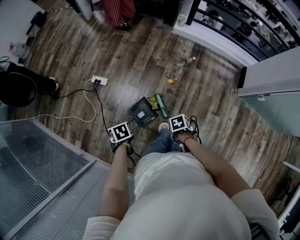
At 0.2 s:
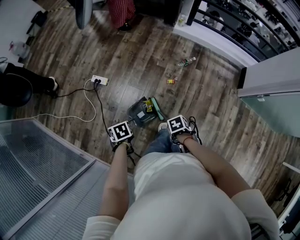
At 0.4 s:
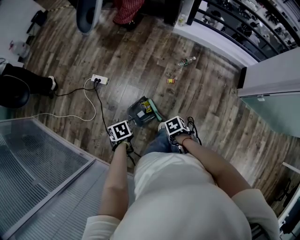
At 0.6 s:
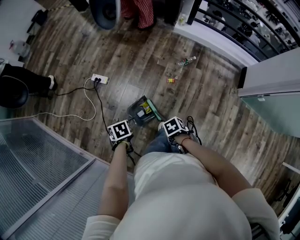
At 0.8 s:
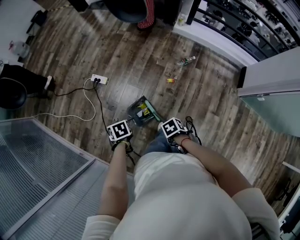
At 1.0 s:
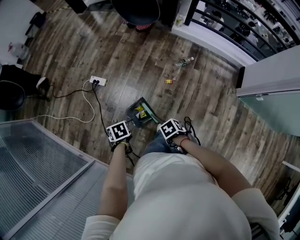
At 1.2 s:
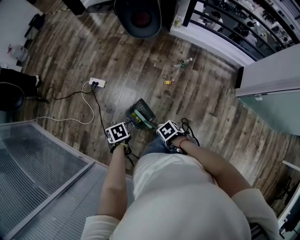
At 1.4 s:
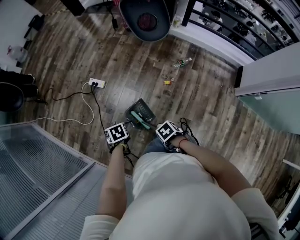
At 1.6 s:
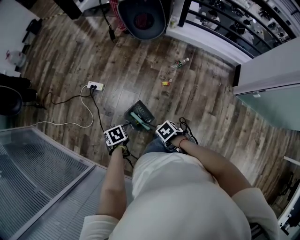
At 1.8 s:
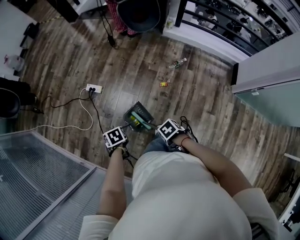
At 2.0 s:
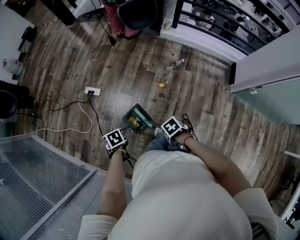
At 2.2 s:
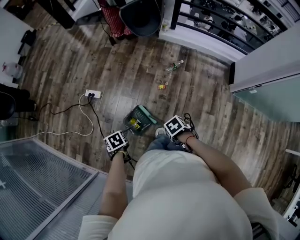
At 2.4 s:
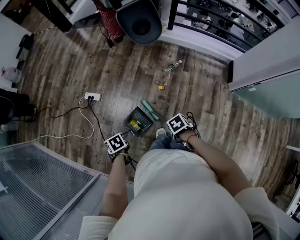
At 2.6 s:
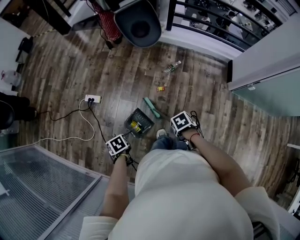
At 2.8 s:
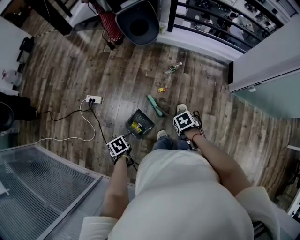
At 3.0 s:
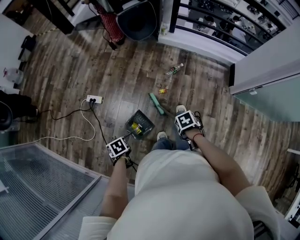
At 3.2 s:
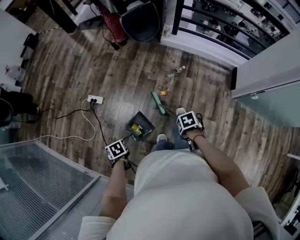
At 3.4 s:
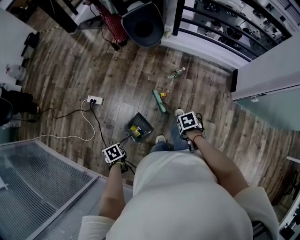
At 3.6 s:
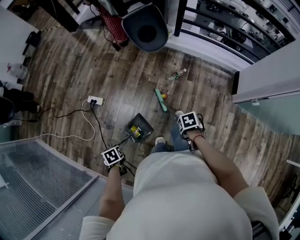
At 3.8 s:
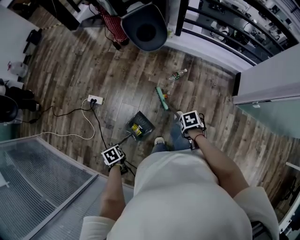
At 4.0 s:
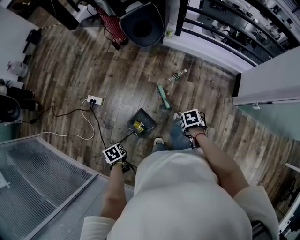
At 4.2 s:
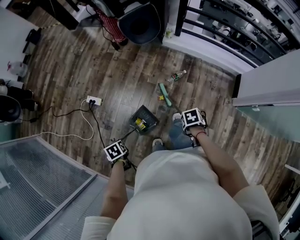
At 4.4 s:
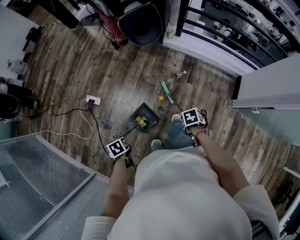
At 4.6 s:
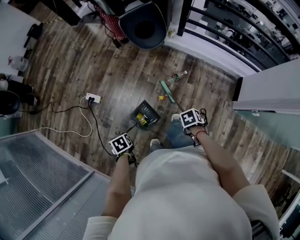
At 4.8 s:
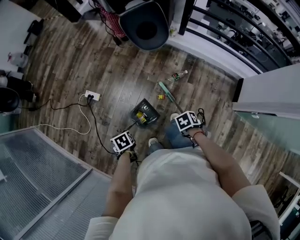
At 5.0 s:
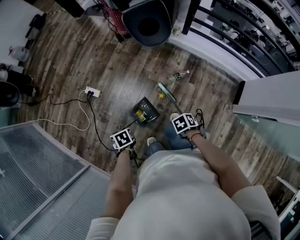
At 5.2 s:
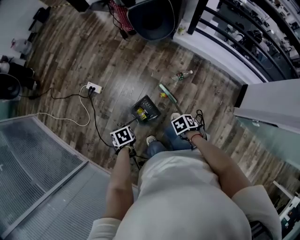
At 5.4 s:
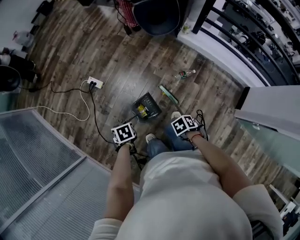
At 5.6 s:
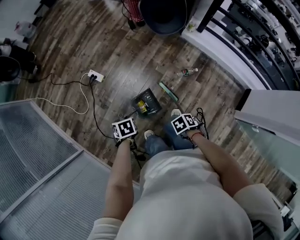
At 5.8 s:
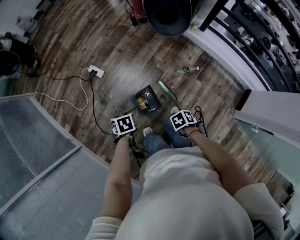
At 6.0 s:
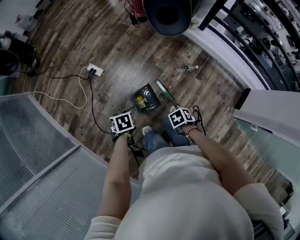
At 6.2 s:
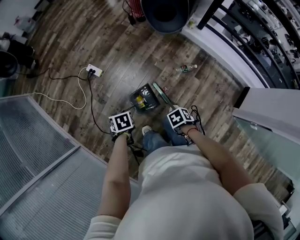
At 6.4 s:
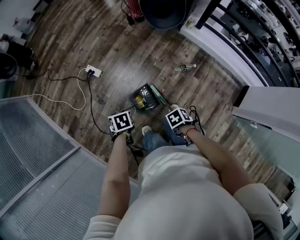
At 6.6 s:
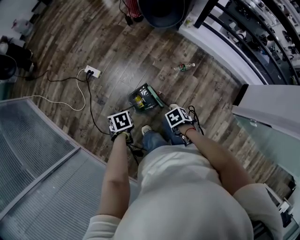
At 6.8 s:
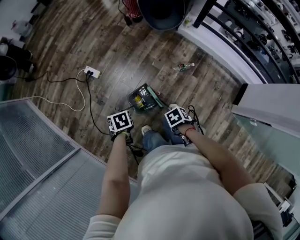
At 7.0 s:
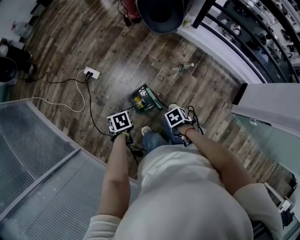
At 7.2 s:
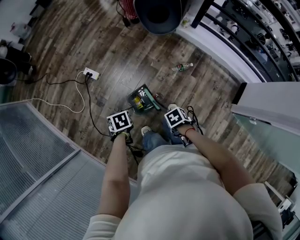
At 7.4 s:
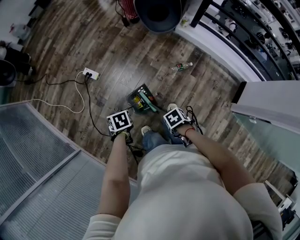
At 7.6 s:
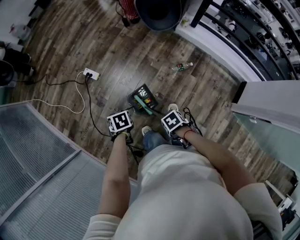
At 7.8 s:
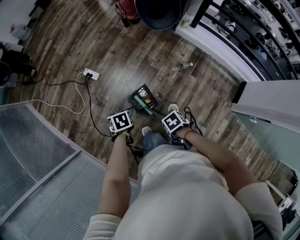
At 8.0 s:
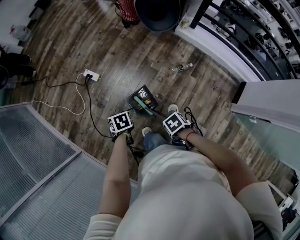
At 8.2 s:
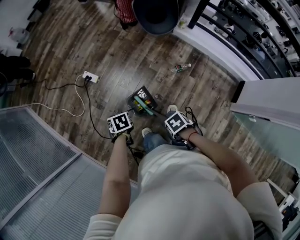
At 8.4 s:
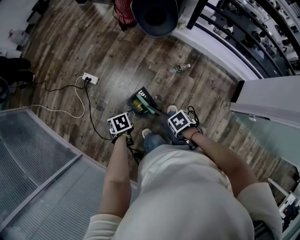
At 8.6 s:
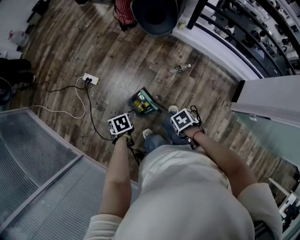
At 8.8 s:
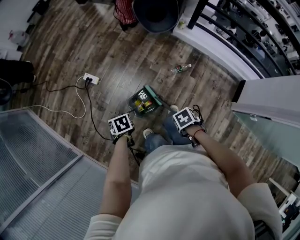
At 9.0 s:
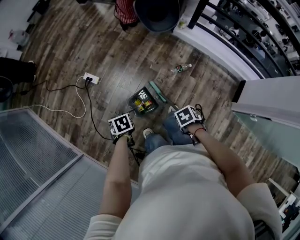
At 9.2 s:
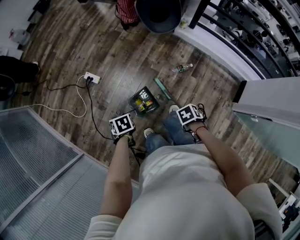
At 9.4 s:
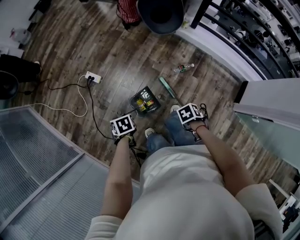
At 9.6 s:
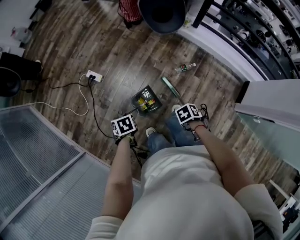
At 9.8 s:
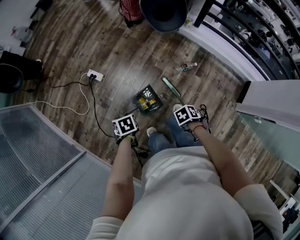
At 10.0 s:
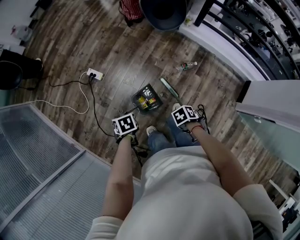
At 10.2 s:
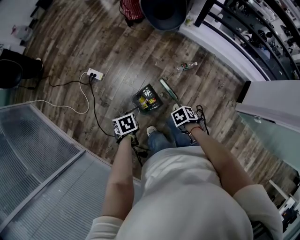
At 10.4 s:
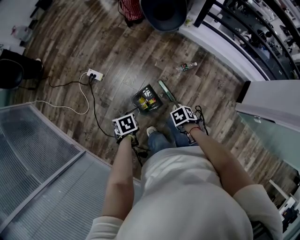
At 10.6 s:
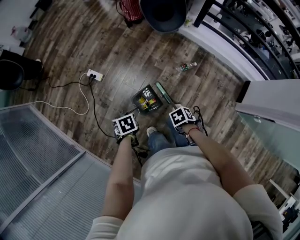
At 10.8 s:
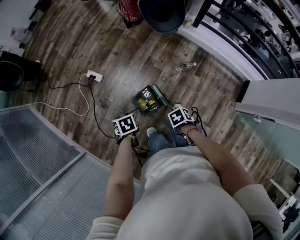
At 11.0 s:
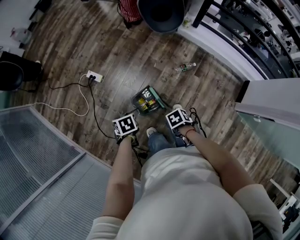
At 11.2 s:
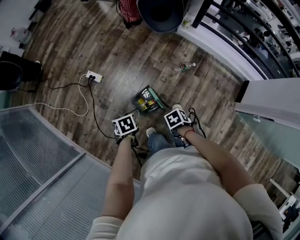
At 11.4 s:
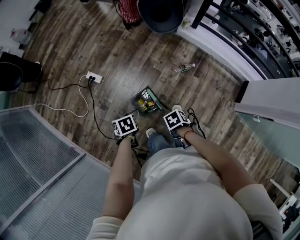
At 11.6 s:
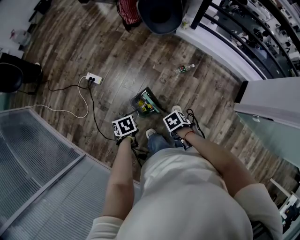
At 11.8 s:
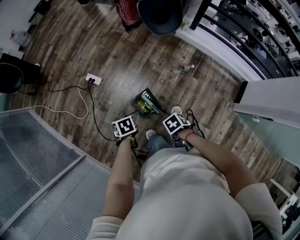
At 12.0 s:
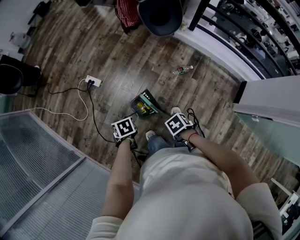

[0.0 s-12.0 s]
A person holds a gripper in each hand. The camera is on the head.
3.0 to 4.4 s: The left gripper moves about 15 cm.
4.4 to 6.0 s: The left gripper moves approximately 5 cm.

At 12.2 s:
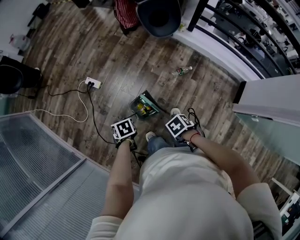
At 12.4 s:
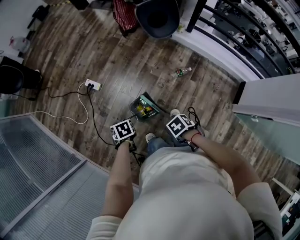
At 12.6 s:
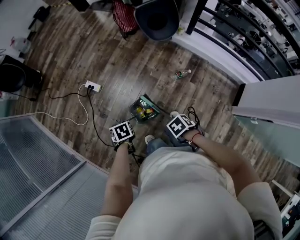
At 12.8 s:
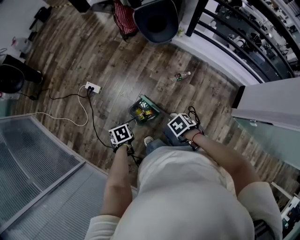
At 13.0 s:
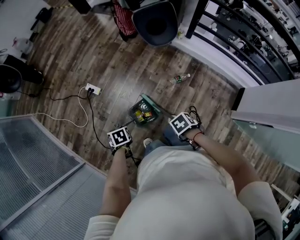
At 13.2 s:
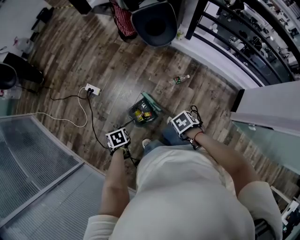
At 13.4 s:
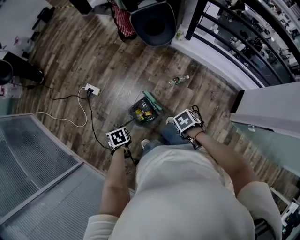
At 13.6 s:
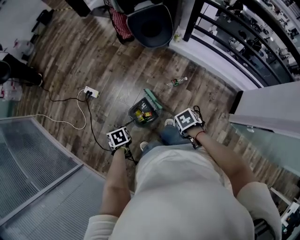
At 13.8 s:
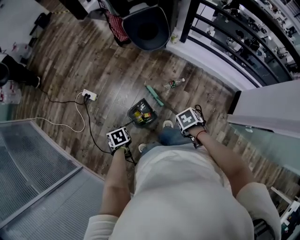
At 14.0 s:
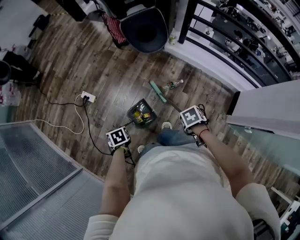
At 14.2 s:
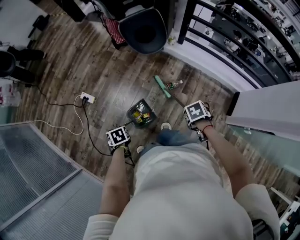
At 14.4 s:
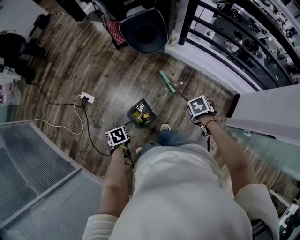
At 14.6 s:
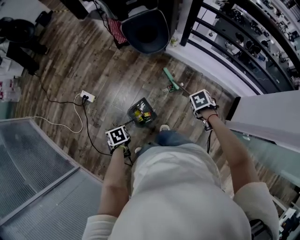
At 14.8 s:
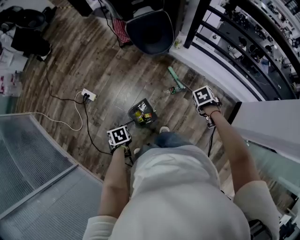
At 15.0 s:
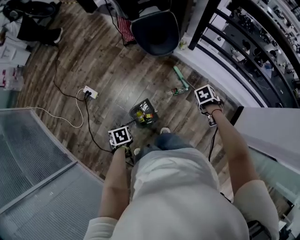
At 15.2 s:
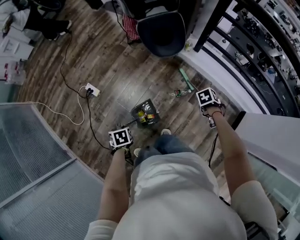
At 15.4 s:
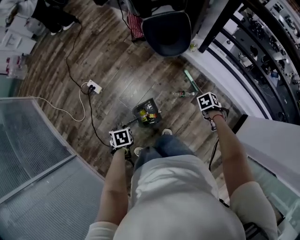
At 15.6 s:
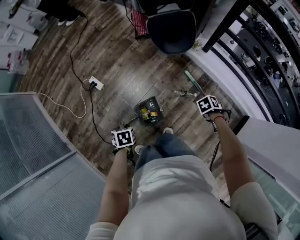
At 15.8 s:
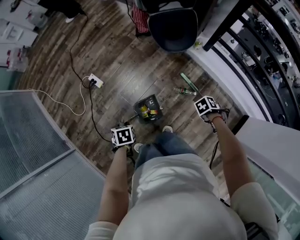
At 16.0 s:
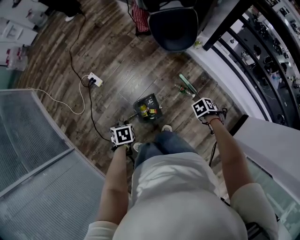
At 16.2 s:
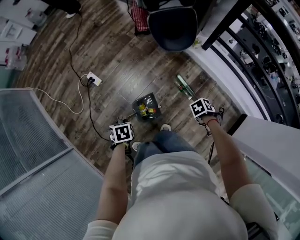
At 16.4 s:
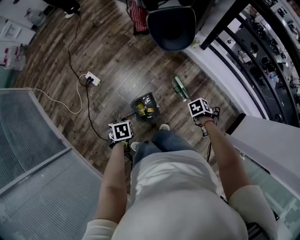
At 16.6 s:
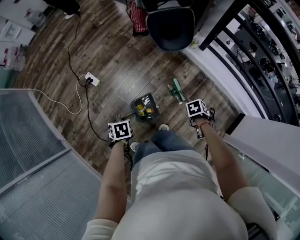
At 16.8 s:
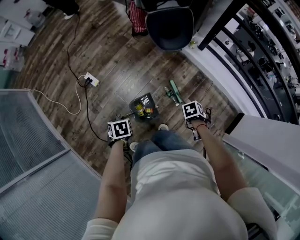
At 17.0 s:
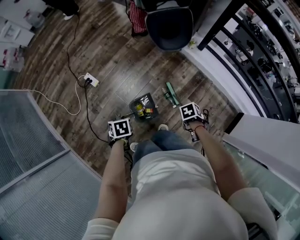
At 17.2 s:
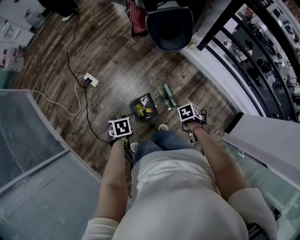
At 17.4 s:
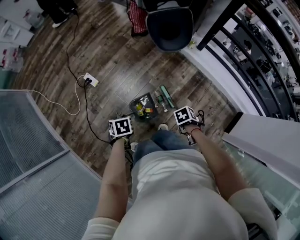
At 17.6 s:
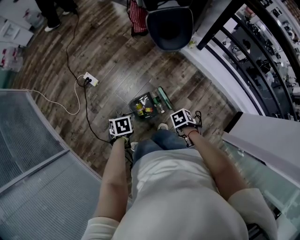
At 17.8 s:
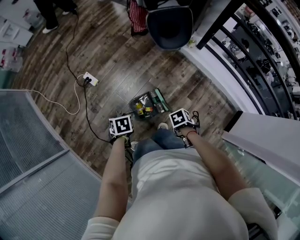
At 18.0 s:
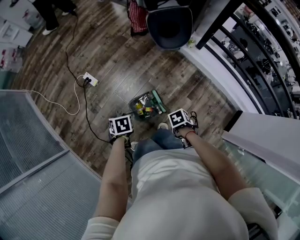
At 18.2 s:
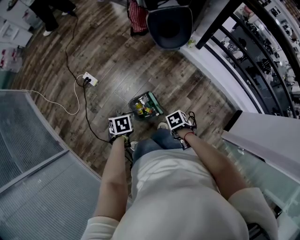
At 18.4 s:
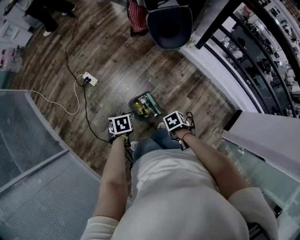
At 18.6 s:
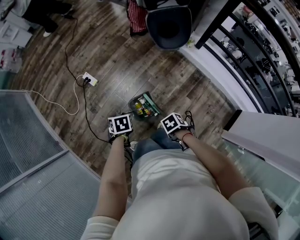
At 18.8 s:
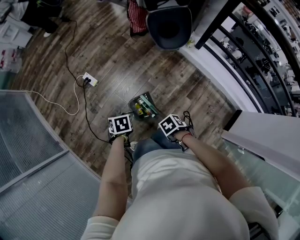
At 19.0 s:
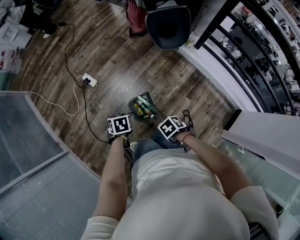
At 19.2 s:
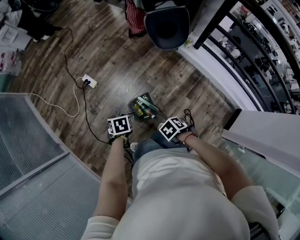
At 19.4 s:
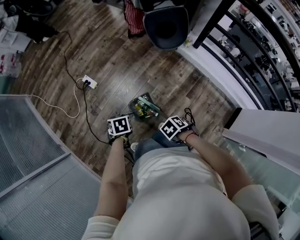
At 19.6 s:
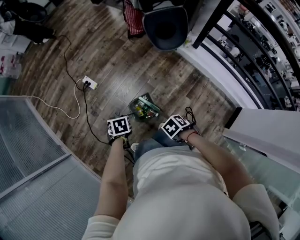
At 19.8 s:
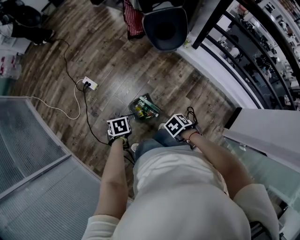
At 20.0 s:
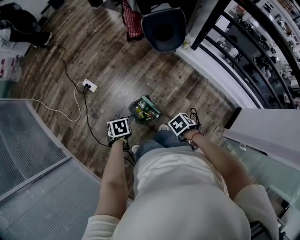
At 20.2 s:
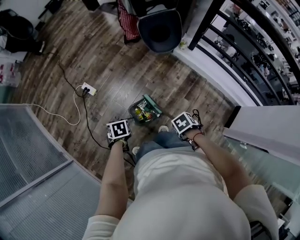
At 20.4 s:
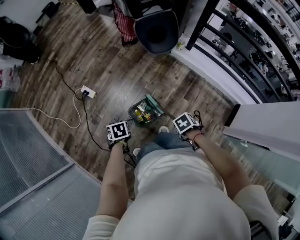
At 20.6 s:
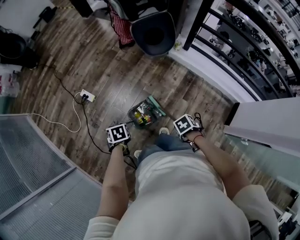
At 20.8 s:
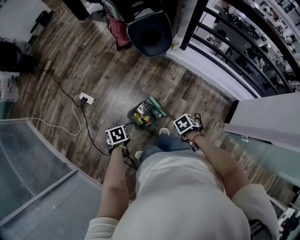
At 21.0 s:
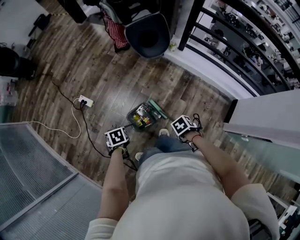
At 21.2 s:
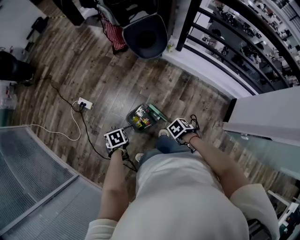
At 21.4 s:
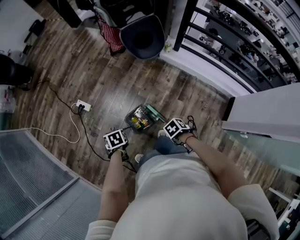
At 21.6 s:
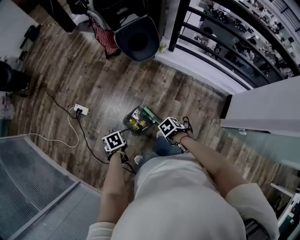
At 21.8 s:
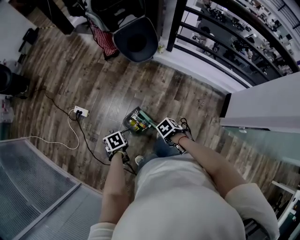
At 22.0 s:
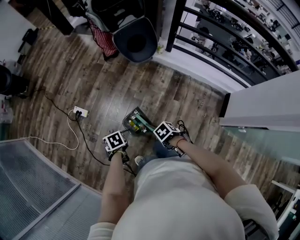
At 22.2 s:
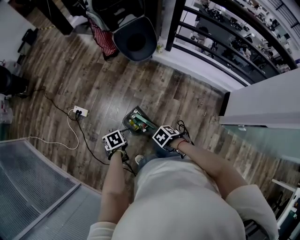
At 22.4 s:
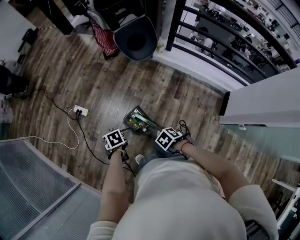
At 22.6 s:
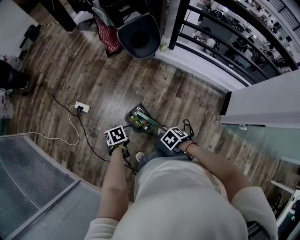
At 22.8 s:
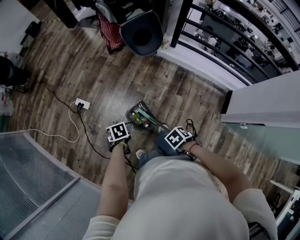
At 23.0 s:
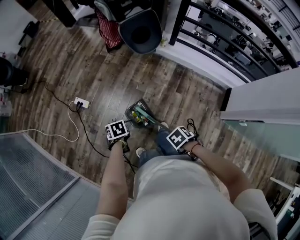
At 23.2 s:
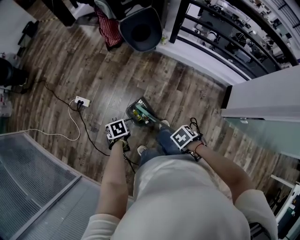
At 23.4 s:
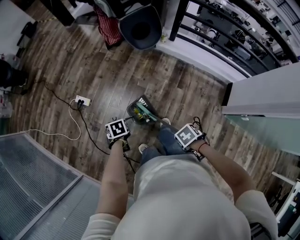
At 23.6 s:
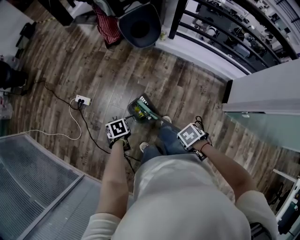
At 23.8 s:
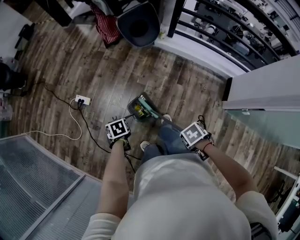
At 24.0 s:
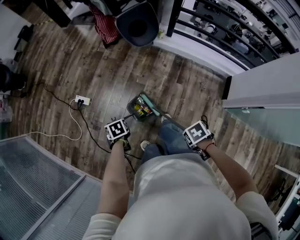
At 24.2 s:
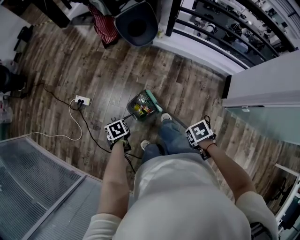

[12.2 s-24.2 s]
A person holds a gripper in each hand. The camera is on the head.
12.2 to 13.8 s: The left gripper moves some 5 cm.
13.8 to 15.2 s: The left gripper changes place by some 10 cm.

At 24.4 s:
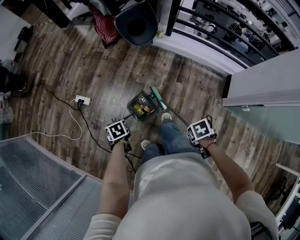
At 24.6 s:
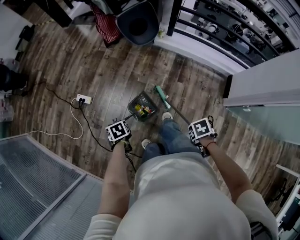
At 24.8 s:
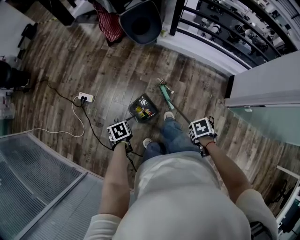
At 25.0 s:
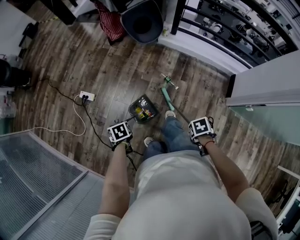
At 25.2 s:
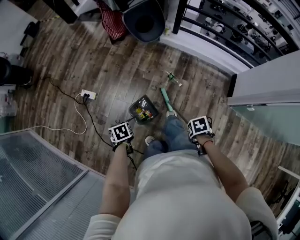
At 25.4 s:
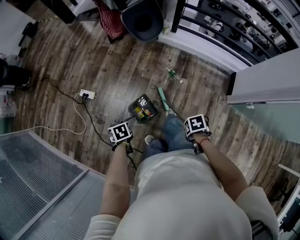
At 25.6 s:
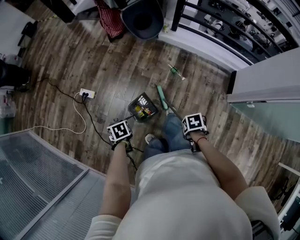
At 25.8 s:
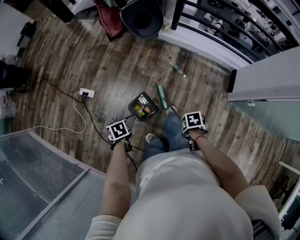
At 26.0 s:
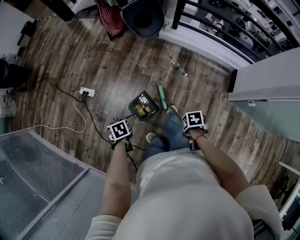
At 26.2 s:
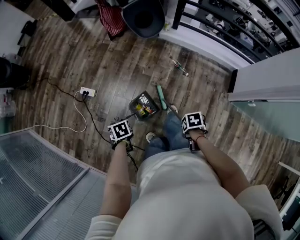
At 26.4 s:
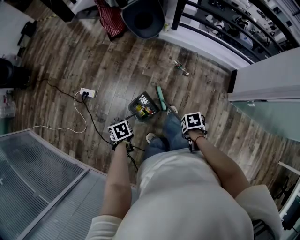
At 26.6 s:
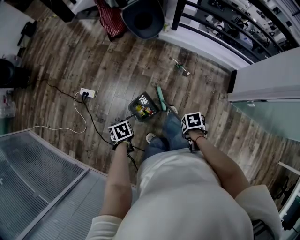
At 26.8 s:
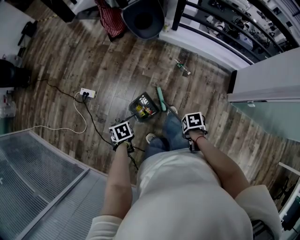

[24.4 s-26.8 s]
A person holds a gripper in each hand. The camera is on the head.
24.4 to 25.6 s: The left gripper shifts by about 5 cm.
